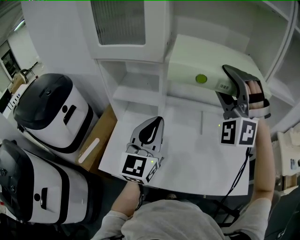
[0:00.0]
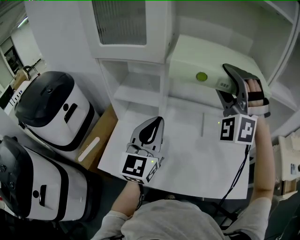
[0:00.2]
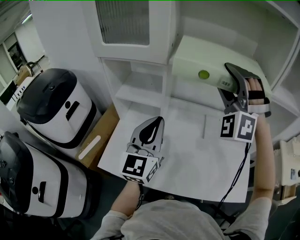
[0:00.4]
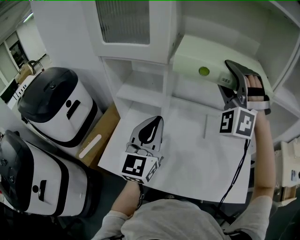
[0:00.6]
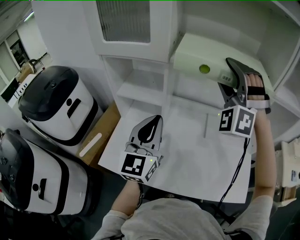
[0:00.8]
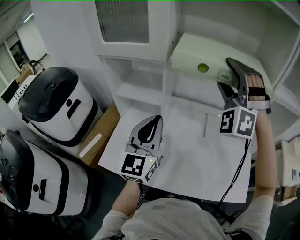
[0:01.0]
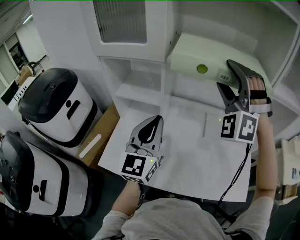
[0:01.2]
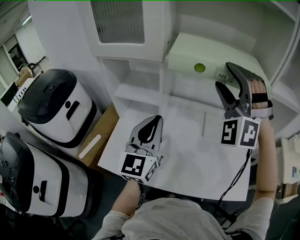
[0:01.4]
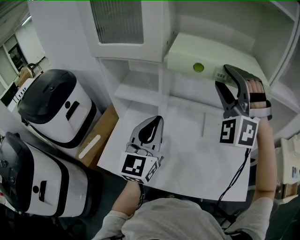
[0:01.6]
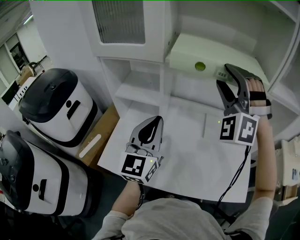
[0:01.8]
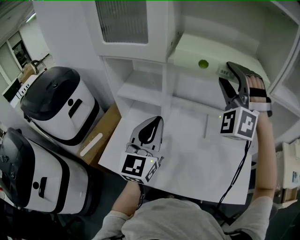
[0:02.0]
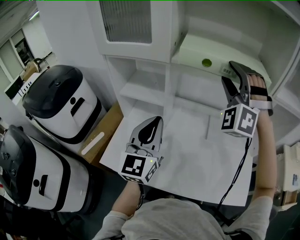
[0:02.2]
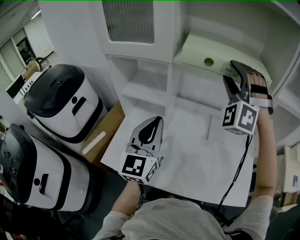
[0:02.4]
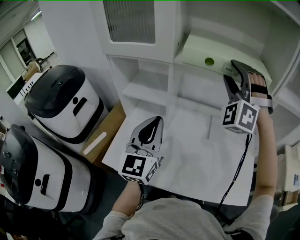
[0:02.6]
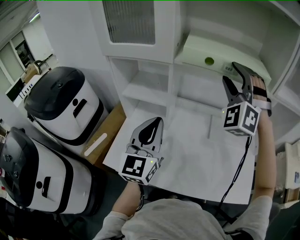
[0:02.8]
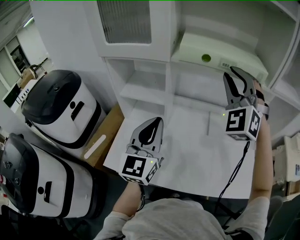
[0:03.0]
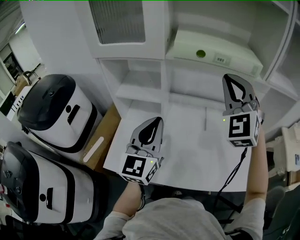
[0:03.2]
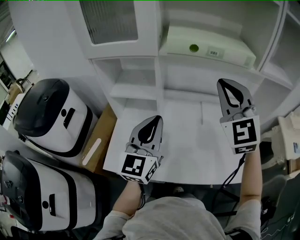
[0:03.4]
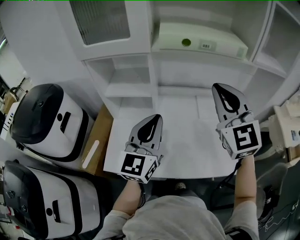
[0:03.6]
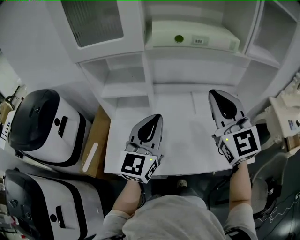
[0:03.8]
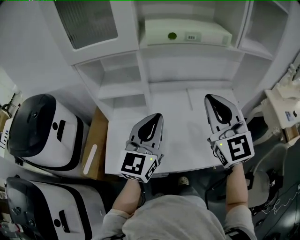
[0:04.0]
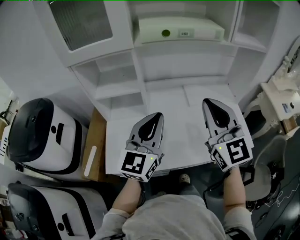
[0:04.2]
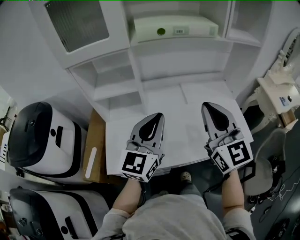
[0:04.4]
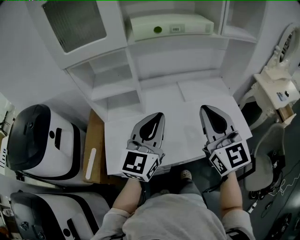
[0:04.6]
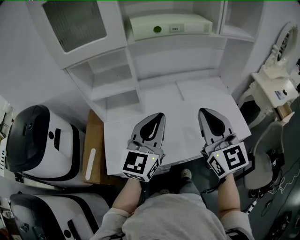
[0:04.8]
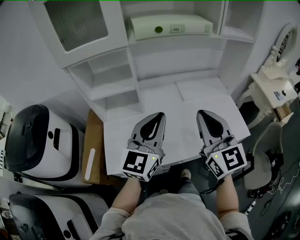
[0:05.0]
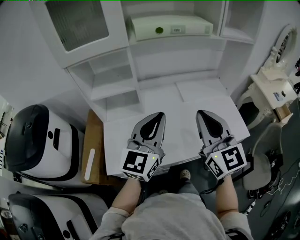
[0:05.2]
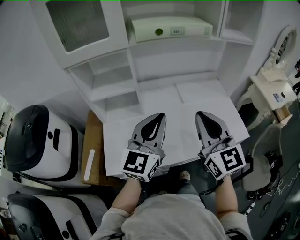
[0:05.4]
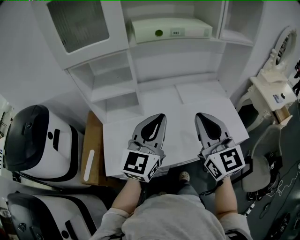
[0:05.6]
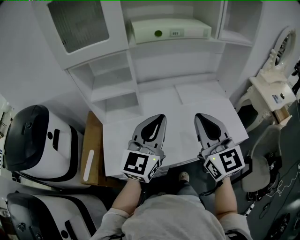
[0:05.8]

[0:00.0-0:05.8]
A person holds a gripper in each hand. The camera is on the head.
0:00.0 to 0:01.4: There are only small adjustments of the grippers.
0:01.4 to 0:02.8: There are only small adjustments of the grippers.
0:02.8 to 0:04.4: The left gripper travels backward by some 5 cm, and turns by about 30 degrees; the right gripper is displaced backward by approximately 25 cm, rolls clockwise, seen from behind, by roughly 70 degrees, and closes.
0:04.4 to 0:05.8: The grippers stay close to where they were, moving slightly.

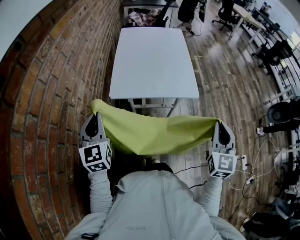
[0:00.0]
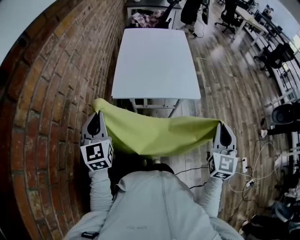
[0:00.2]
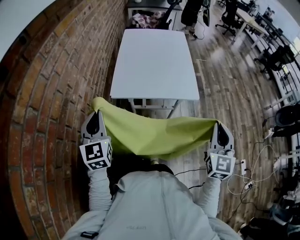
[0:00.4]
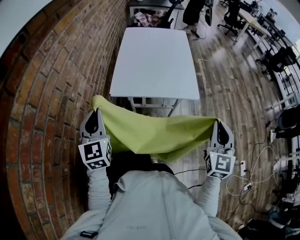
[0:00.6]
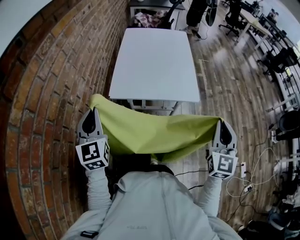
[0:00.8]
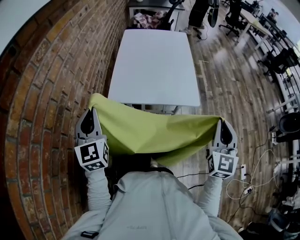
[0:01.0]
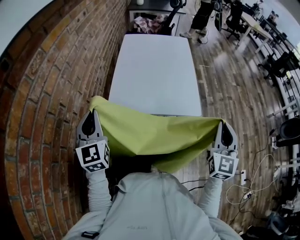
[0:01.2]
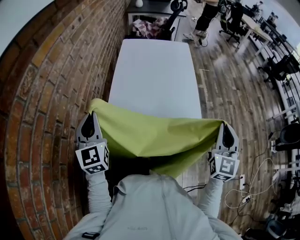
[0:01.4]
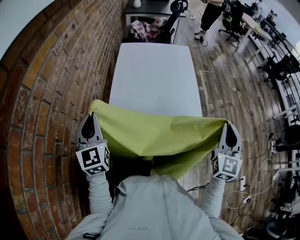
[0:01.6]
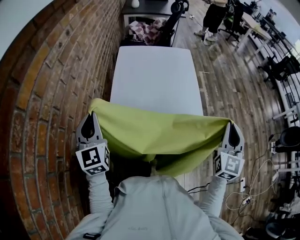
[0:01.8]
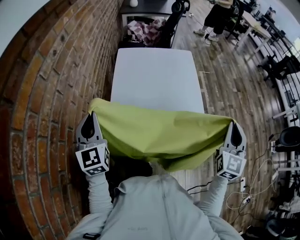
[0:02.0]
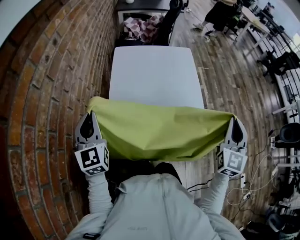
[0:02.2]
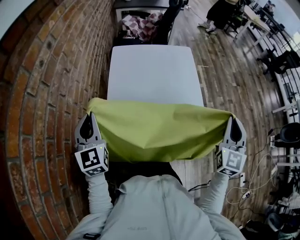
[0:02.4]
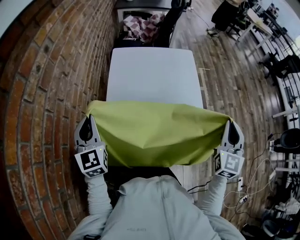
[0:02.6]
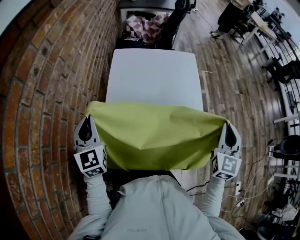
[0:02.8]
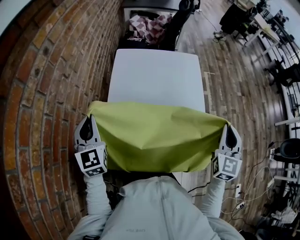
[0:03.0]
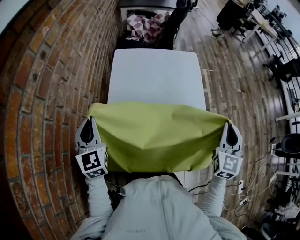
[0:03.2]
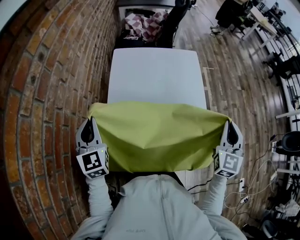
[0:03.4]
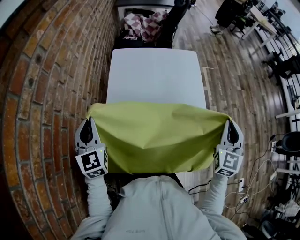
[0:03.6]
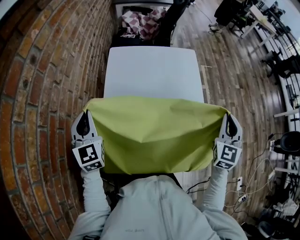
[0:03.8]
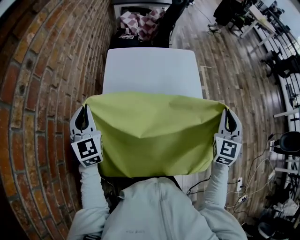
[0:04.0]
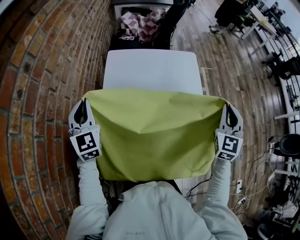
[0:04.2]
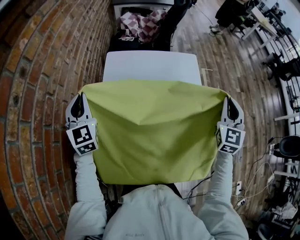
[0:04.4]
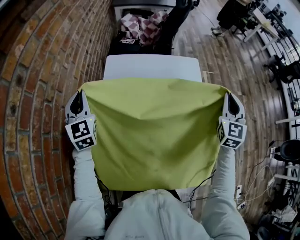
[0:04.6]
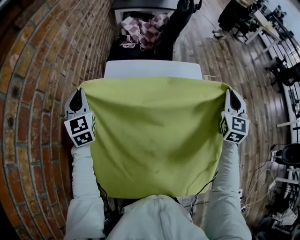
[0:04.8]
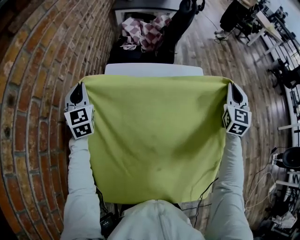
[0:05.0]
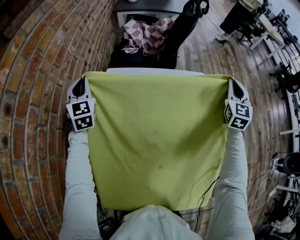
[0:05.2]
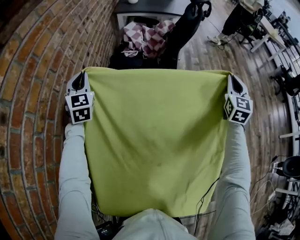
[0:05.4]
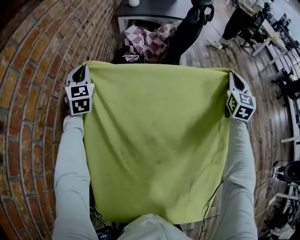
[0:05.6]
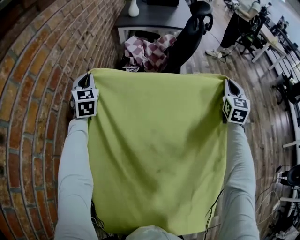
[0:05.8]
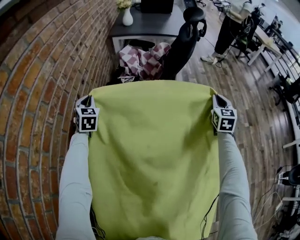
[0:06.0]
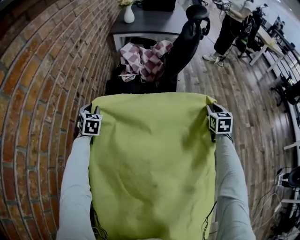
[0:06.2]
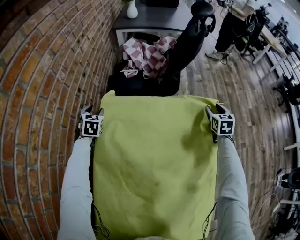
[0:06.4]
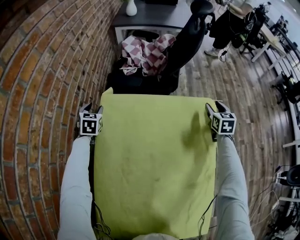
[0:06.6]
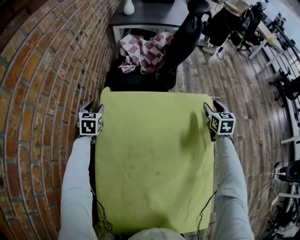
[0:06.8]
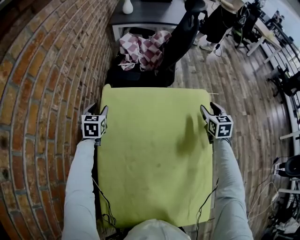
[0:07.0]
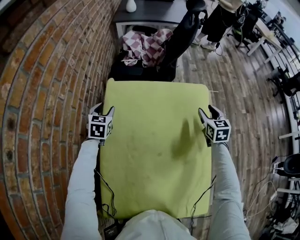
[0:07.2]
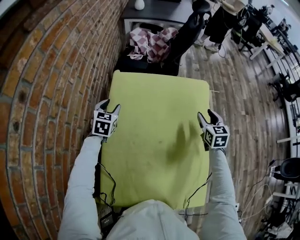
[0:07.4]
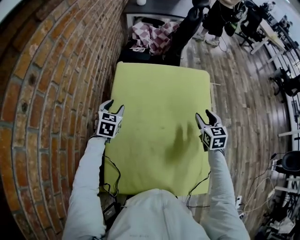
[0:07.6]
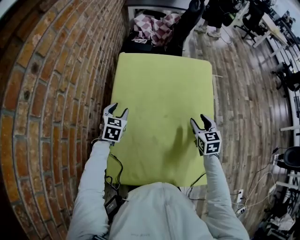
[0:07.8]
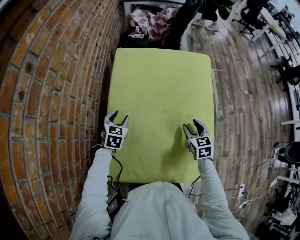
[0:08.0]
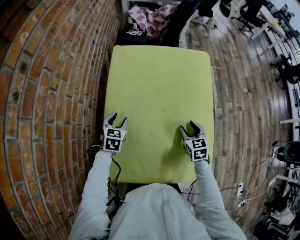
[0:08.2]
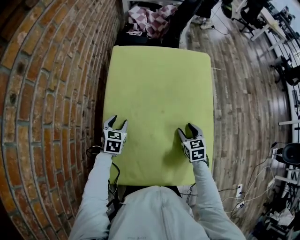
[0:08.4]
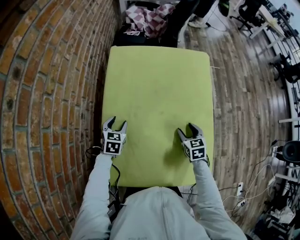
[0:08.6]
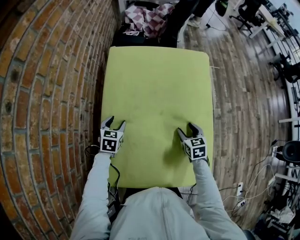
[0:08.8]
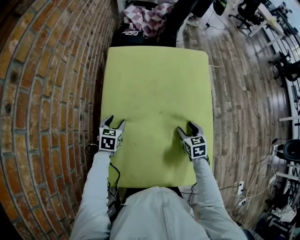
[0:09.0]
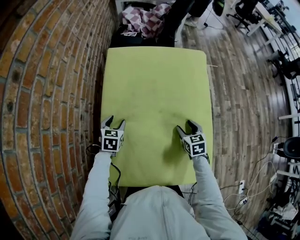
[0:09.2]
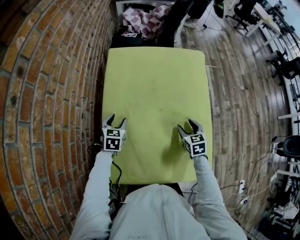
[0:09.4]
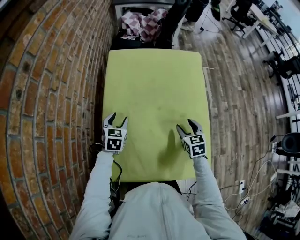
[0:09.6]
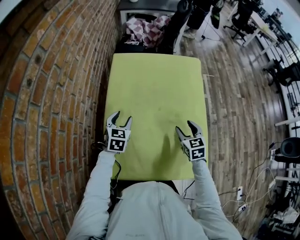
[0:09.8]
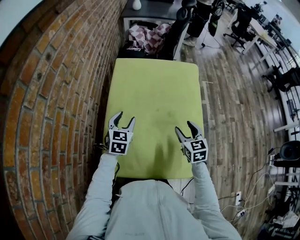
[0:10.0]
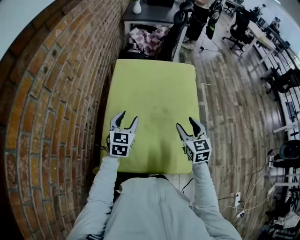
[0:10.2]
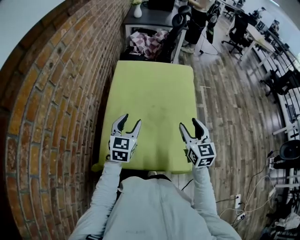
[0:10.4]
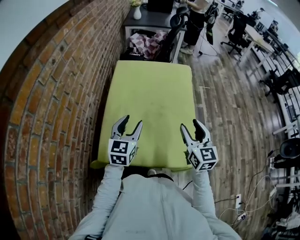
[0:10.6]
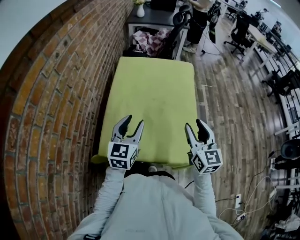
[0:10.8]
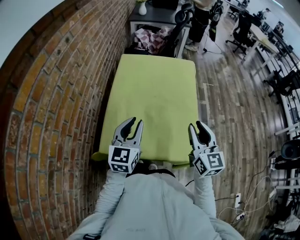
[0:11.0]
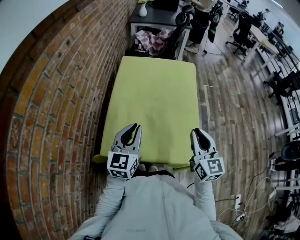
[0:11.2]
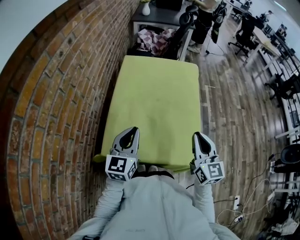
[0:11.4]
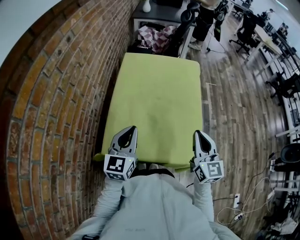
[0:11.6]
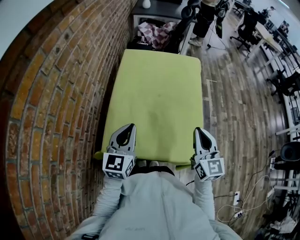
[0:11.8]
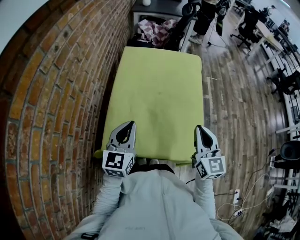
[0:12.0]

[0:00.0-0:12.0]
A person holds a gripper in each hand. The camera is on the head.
0:00.0 to 0:01.6: Both grippers travel together forward, approximately 20 cm.
0:01.6 to 0:03.0: The grippers both shift forward by approximately 20 cm.
0:03.0 to 0:04.4: The two grippers go roughly 15 cm forward.
0:04.4 to 0:06.0: The left gripper goes approximately 35 cm forward and downward. Meanwhile the right gripper goes some 35 cm forward.
0:06.0 to 0:07.6: The right gripper travels backward and to the left by some 30 cm, and opens its fingers. Meanwhile the left gripper heads backward, covering roughly 30 cm, swivels some 20 degrees, and opens up.
0:07.6 to 0:09.0: The right gripper travels downward, backward and to the left by roughly 20 cm. The left gripper is displaced backward and downward by approximately 15 cm.
0:09.0 to 0:10.4: The right gripper goes about 25 cm upward and backward, and points its fingers approximately 30 degrees further upward. The left gripper is displaced upward, backward and to the right by about 30 cm, and swivels approximately 30 degrees.
0:10.4 to 0:12.0: Both grippers travel together backward, some 10 cm. The left gripper closes its fingers. The right gripper closes.

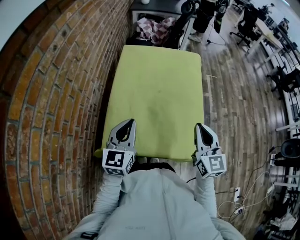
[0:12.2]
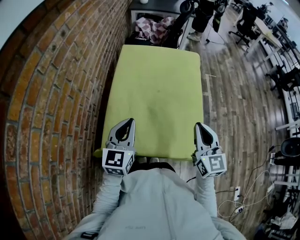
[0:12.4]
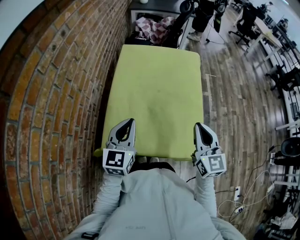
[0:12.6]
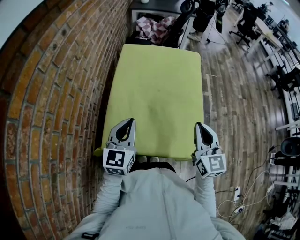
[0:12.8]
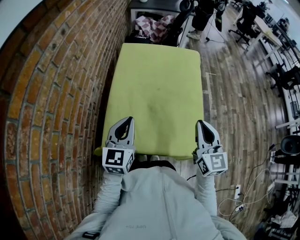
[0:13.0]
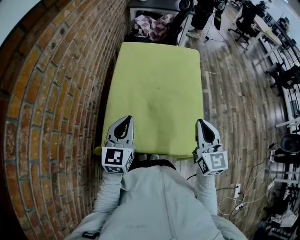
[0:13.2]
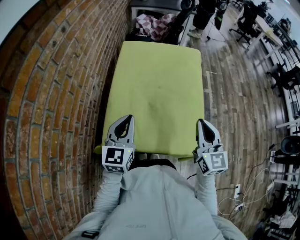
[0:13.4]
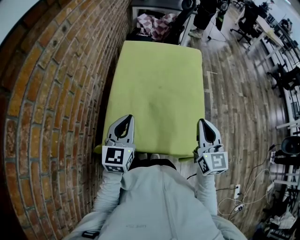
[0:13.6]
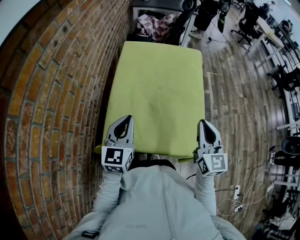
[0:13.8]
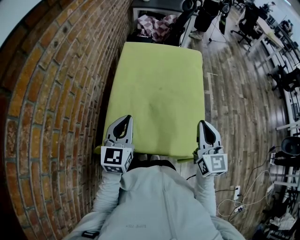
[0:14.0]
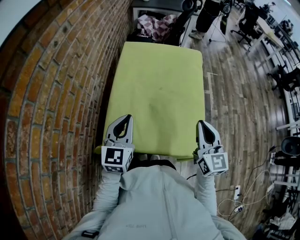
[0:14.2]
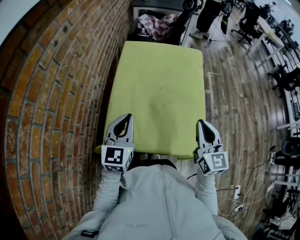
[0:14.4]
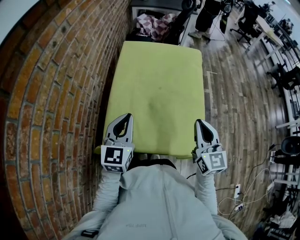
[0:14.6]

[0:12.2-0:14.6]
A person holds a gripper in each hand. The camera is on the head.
0:12.2 to 0:13.4: Both grippers stay about where they are.
0:13.4 to 0:14.6: The grippers make only small movements.

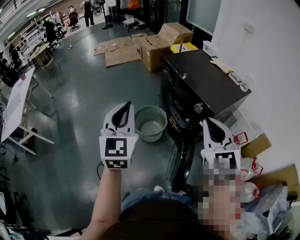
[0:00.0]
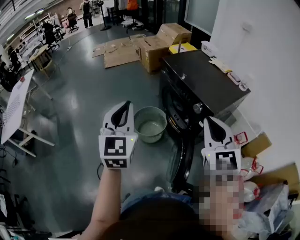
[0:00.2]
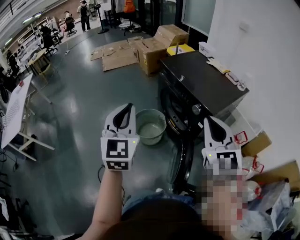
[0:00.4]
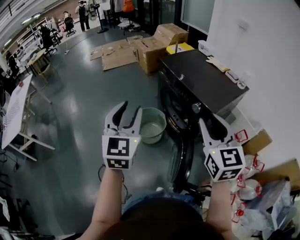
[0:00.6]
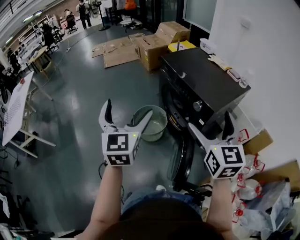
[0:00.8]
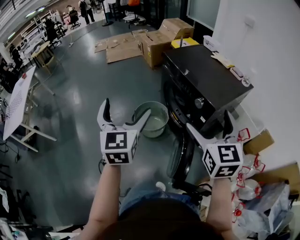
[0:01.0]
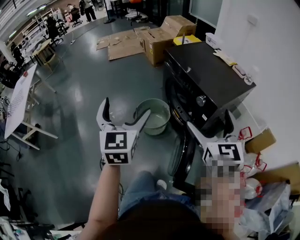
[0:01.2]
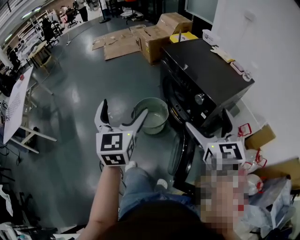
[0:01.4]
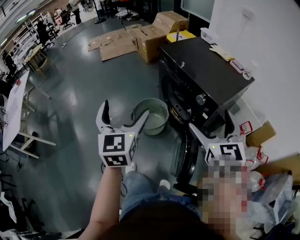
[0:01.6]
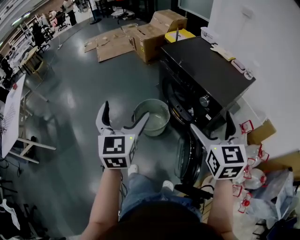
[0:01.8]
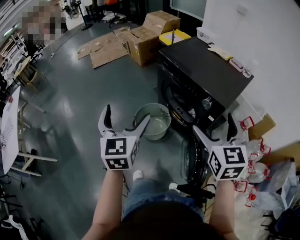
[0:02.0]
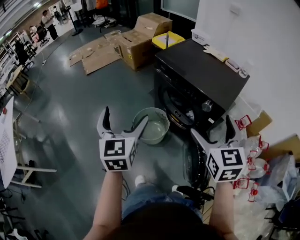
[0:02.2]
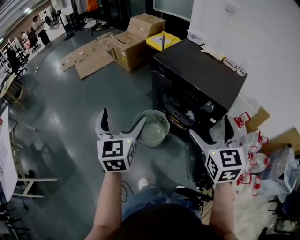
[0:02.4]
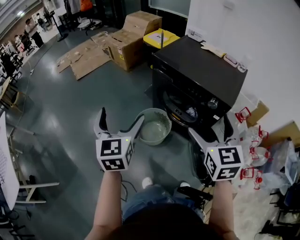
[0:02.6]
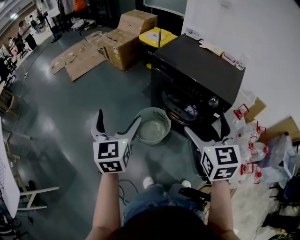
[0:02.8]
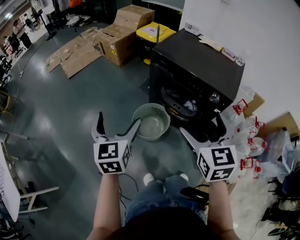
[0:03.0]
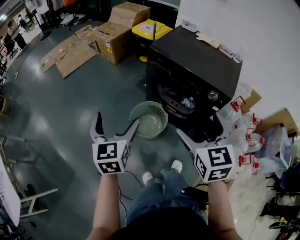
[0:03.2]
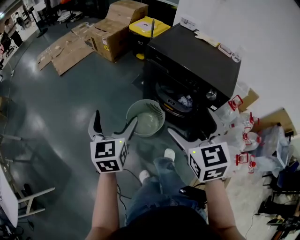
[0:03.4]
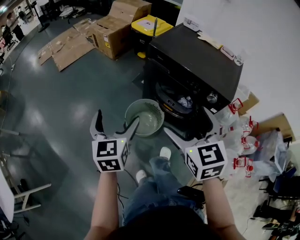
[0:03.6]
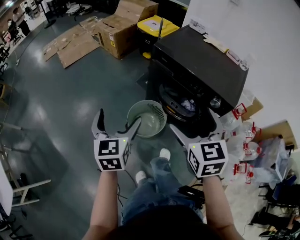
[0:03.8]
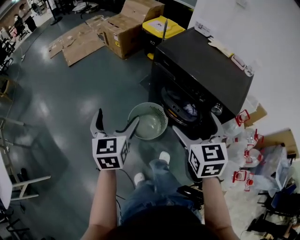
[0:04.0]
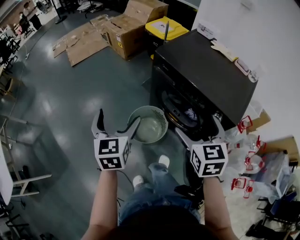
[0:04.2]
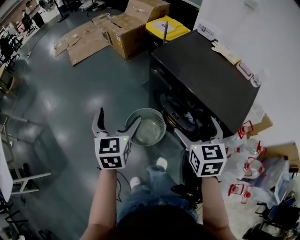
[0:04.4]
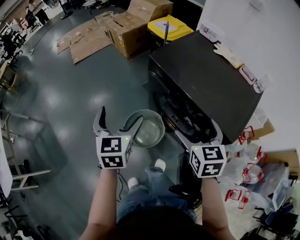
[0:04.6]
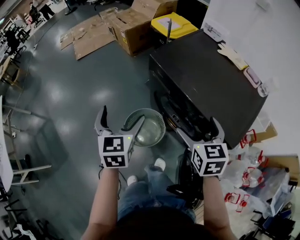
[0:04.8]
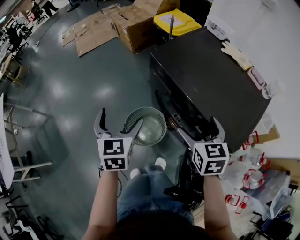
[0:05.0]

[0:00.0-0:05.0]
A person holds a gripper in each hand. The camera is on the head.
0:00.0 to 0:01.6: The left gripper shifts by approximately 5 cm, and opens up, while the right gripper changes place by approximately 5 cm, and opens.
0:01.6 to 0:03.4: The left gripper goes about 25 cm to the left and forward, and rotates about 20 degrees; the right gripper heads to the left, covering roughly 25 cm.
0:03.4 to 0:05.0: The left gripper is displaced forward and to the right by about 20 cm, while the right gripper is displaced forward, to the right and downward by some 30 cm.
